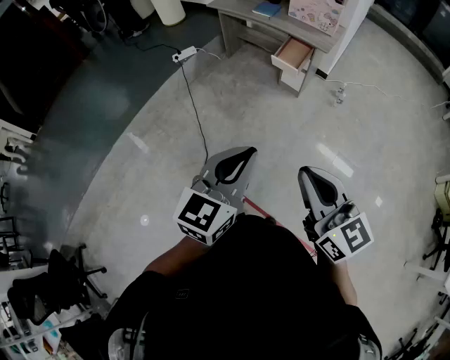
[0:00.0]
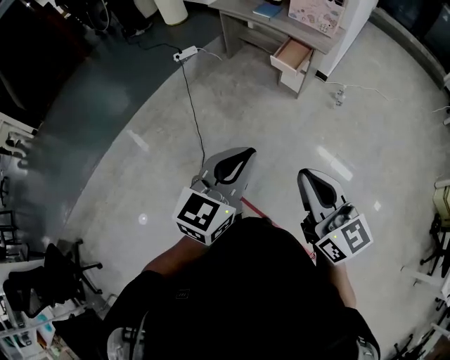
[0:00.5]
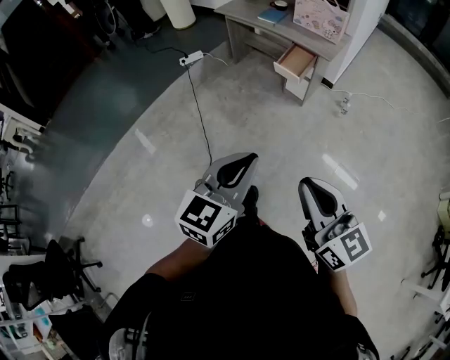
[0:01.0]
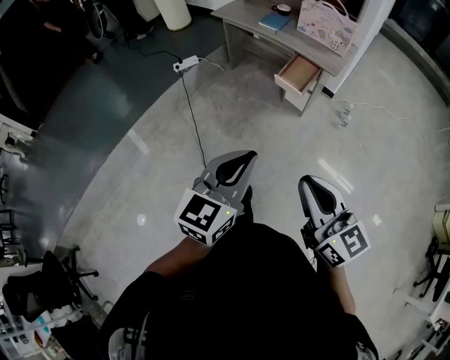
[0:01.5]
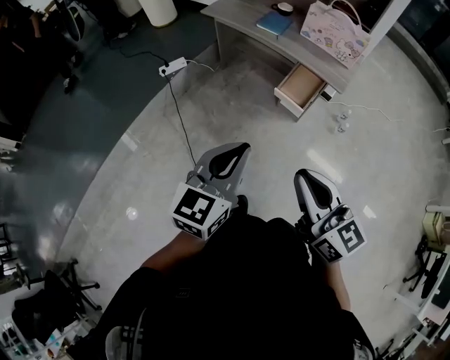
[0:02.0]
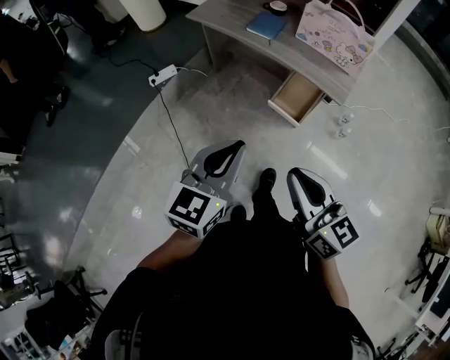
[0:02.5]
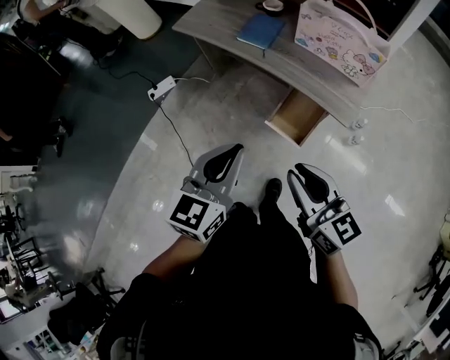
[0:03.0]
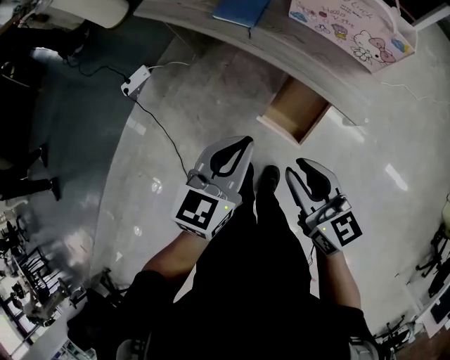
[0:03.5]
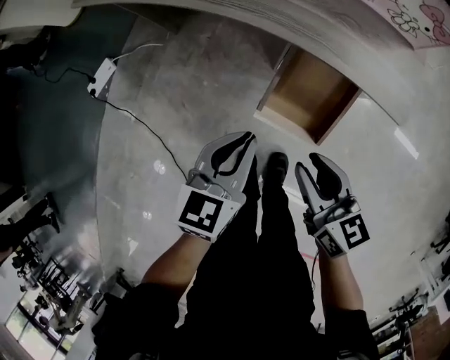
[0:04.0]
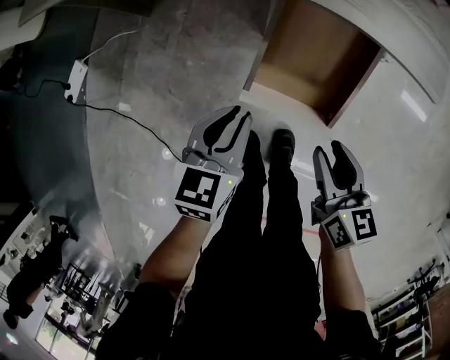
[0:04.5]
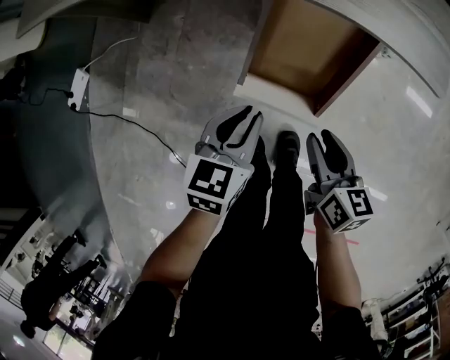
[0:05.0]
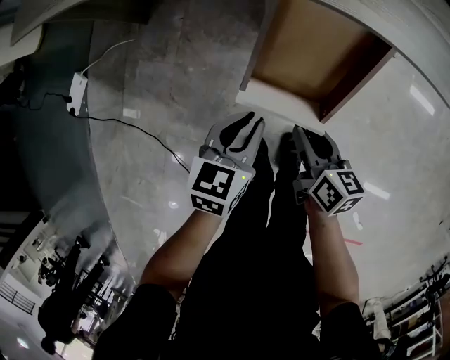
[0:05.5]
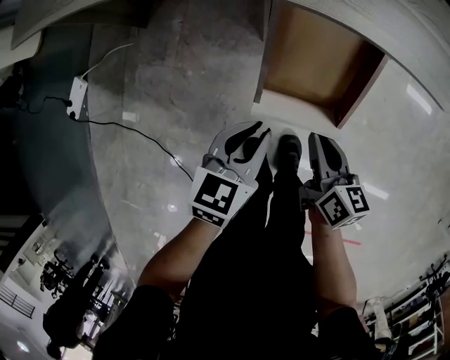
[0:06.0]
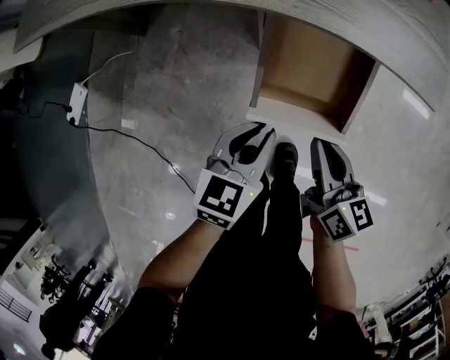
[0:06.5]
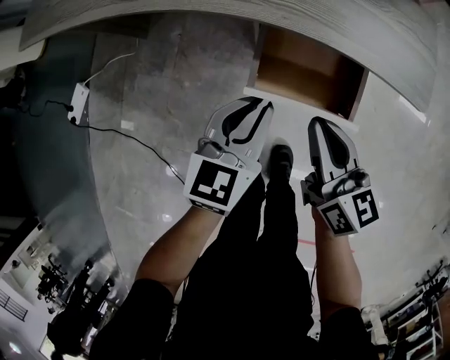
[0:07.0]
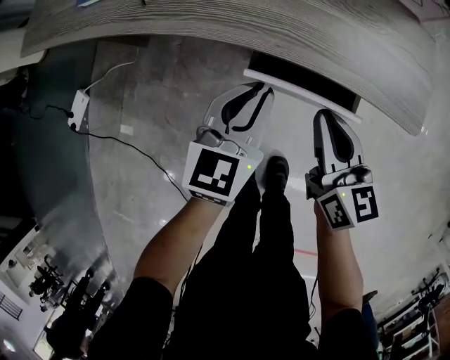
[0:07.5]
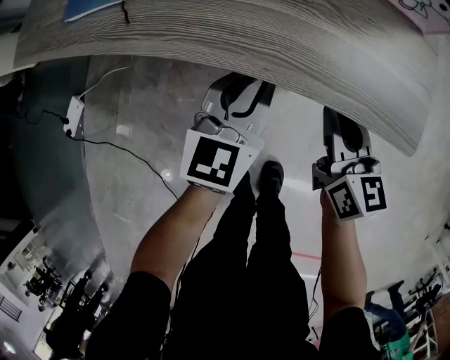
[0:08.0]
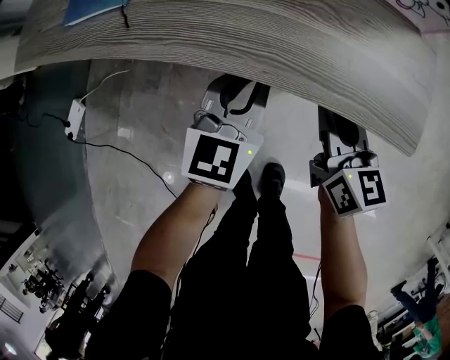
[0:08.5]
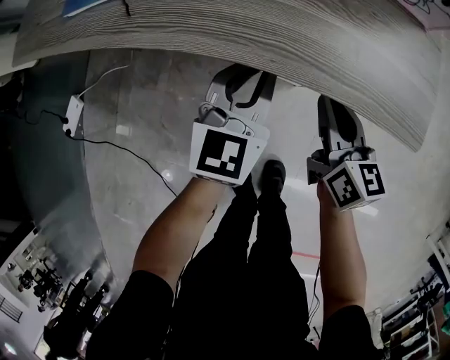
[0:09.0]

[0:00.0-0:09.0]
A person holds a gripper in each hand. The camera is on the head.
0:00.0 to 0:02.0: Both grippers move forward, some 35 cm.
0:02.0 to 0:04.5: Both grippers are carried forward, some 50 cm. The two grippers go roughly 50 cm downward. The right gripper points its fingers some 30 degrees further downward, and opens; the left gripper rotates about 30 degrees.
0:04.5 to 0:07.0: The grippers both shift forward by about 10 cm. The right gripper reaches about 10 cm downward, then returns, and closes. Meanwhile the left gripper moves approximately 5 cm downward and comes back.
0:07.0 to 0:09.0: The grippers both shift forward by roughly 10 cm.

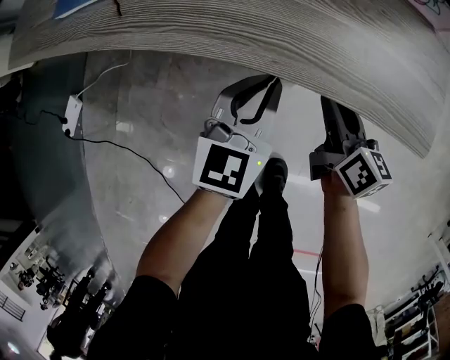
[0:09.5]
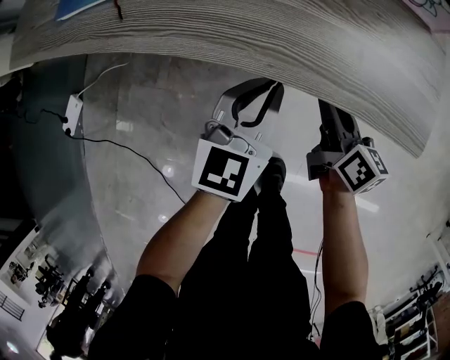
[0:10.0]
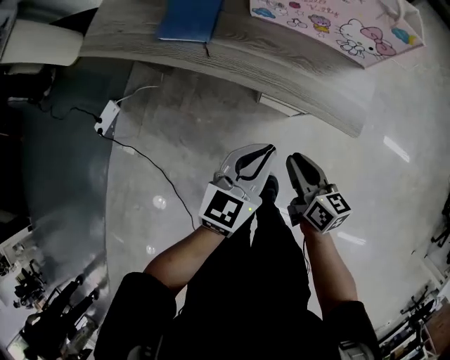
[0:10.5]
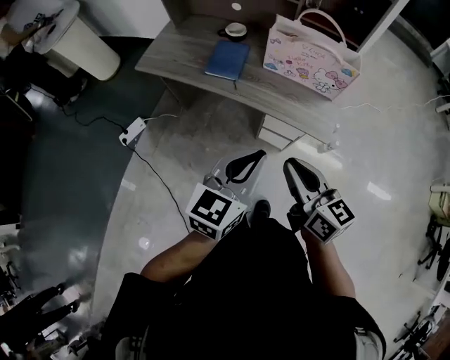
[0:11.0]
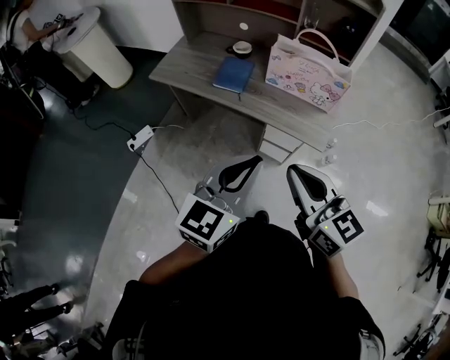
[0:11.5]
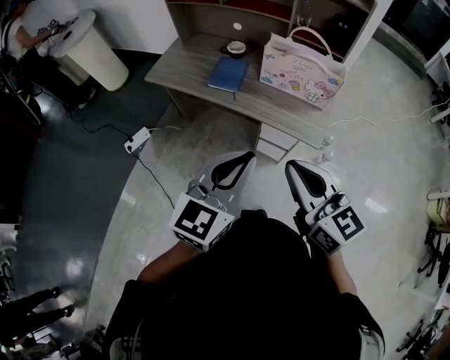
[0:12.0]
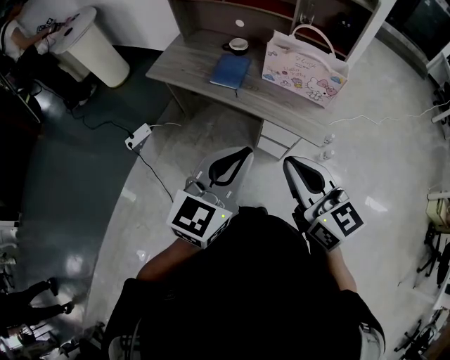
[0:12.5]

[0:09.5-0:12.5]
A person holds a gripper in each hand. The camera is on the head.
0:09.5 to 0:11.0: The grippers both shift upward and backward by approximately 50 cm. The right gripper turns by some 30 degrees, and closes.
0:11.0 to 0:12.5: The two grippers go approximately 10 cm upward and backward.

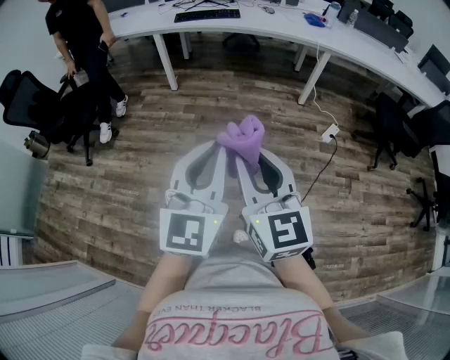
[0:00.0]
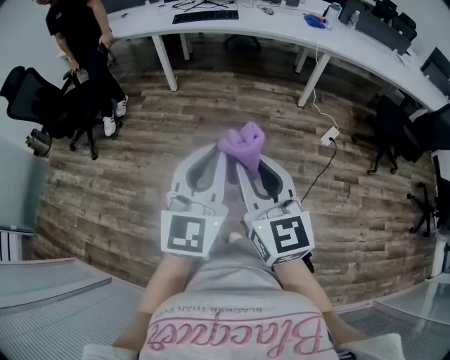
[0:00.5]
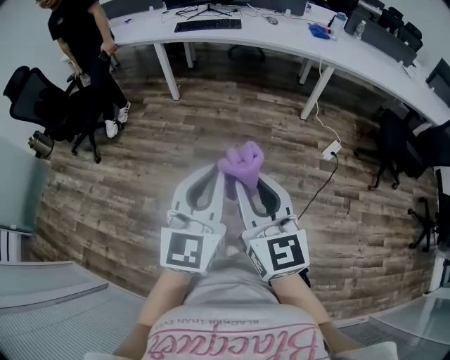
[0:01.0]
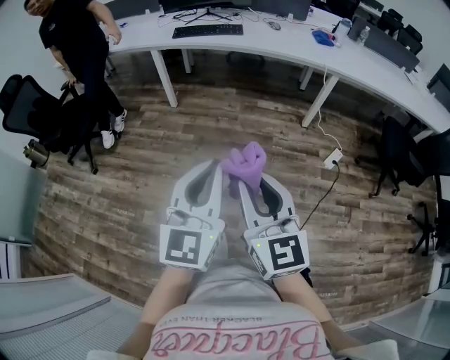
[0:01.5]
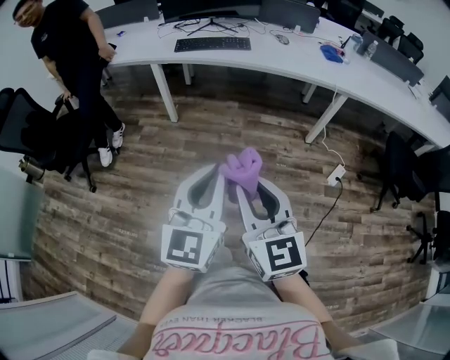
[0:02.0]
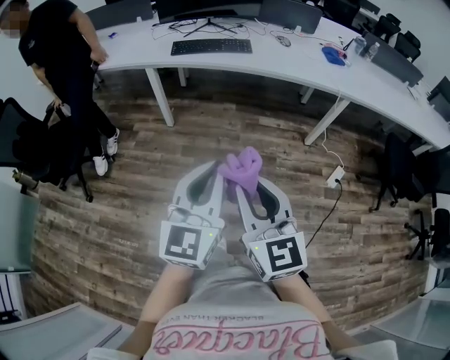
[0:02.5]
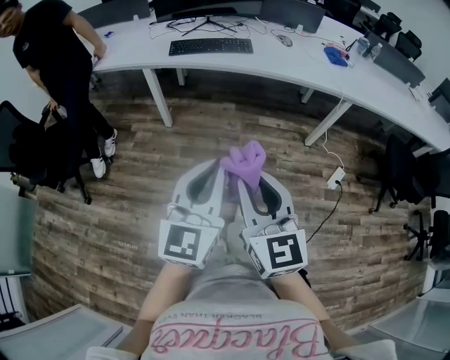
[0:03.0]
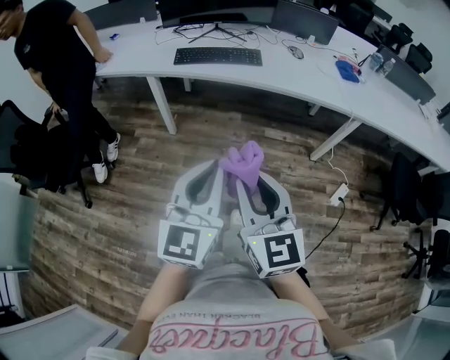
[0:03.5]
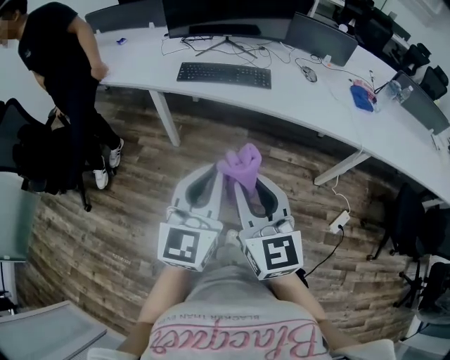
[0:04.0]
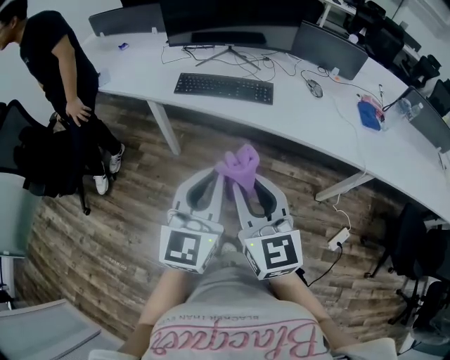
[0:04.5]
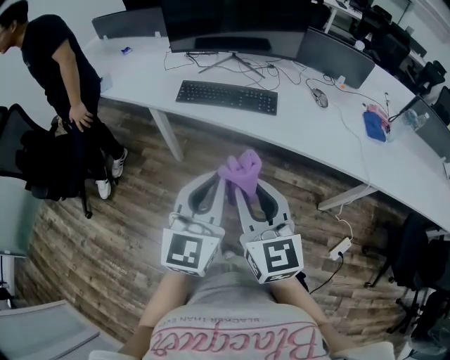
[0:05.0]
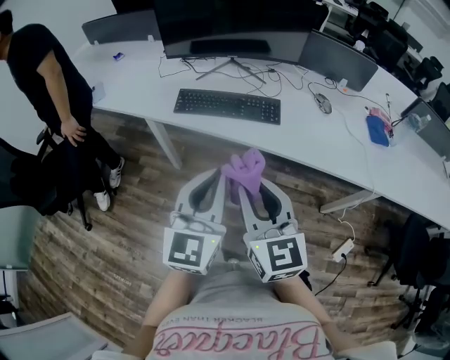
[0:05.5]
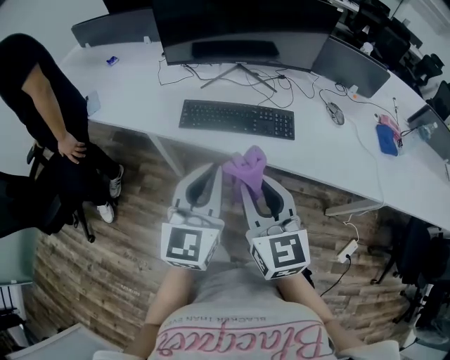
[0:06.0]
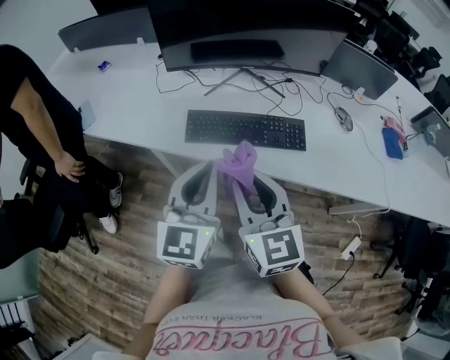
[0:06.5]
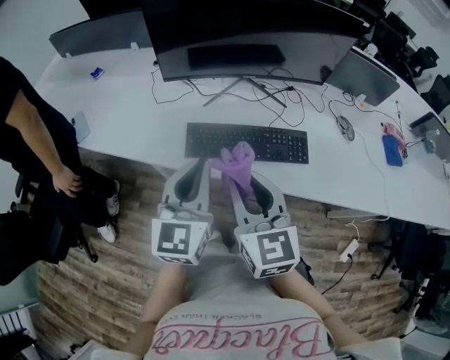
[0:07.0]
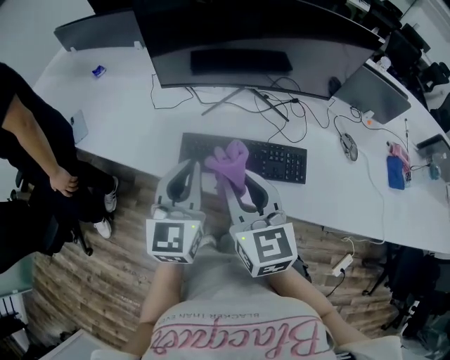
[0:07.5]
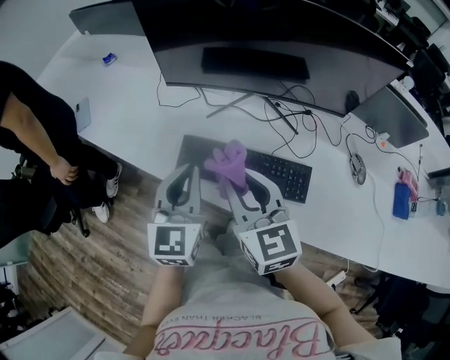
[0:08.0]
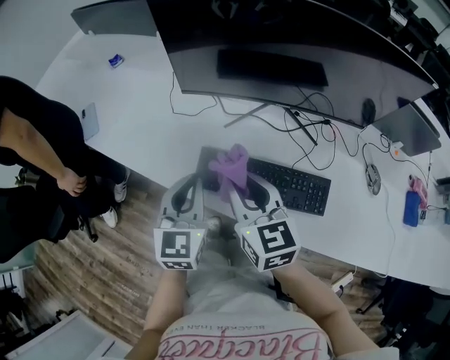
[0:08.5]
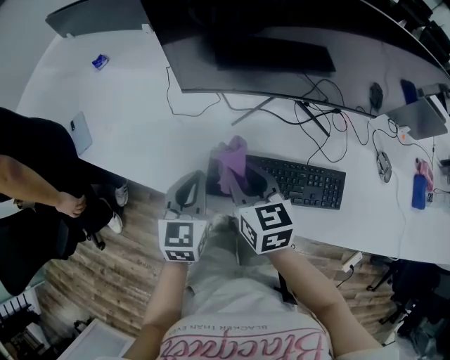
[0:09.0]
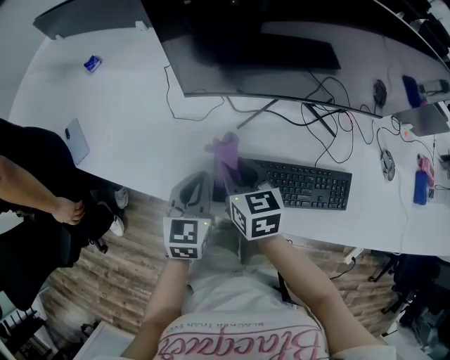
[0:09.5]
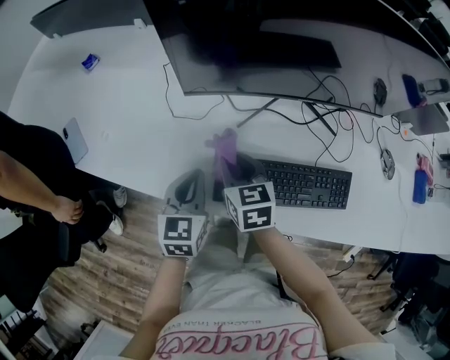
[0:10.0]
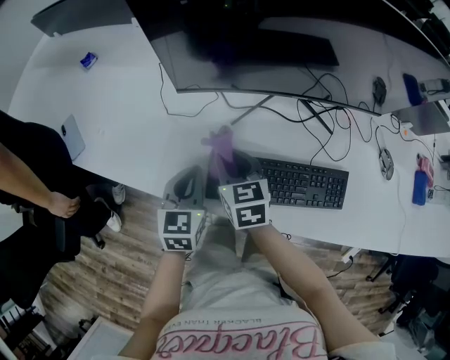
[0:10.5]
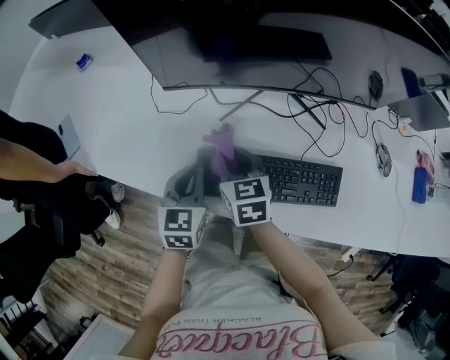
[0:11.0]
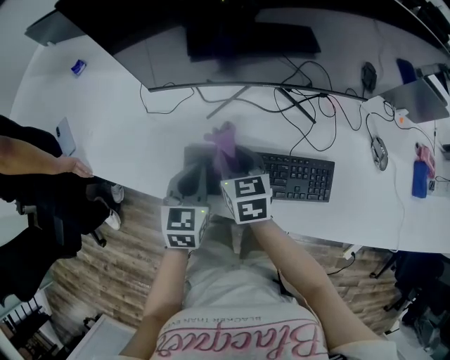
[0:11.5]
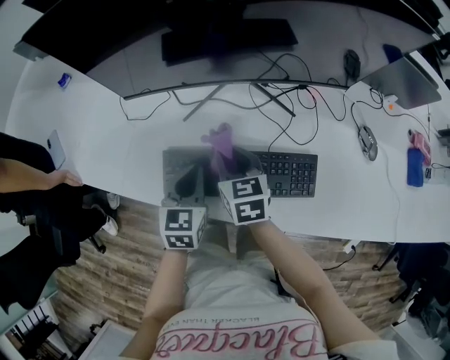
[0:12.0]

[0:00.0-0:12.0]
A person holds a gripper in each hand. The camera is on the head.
0:00.0 to 0:02.0: The two grippers go about 30 cm forward.
0:02.0 to 0:04.0: Both grippers move forward, some 35 cm.
0:04.0 to 0:06.0: The two grippers go about 30 cm forward.
0:06.0 to 0:08.0: Both grippers travel together forward, approximately 25 cm.
0:08.0 to 0:10.0: The grippers both shift downward, forward and to the left by some 25 cm. The left gripper rotates approximately 20 degrees; the right gripper rotates some 30 degrees.
0:10.0 to 0:12.0: Both grippers move to the right, roughly 15 cm.

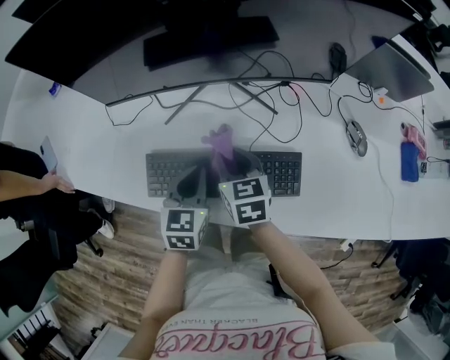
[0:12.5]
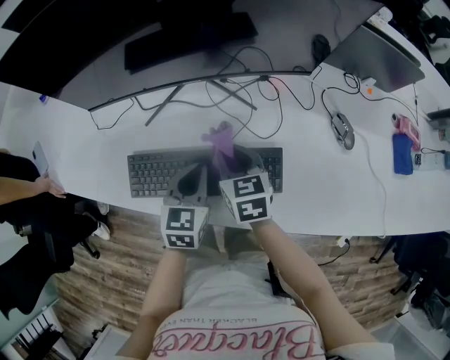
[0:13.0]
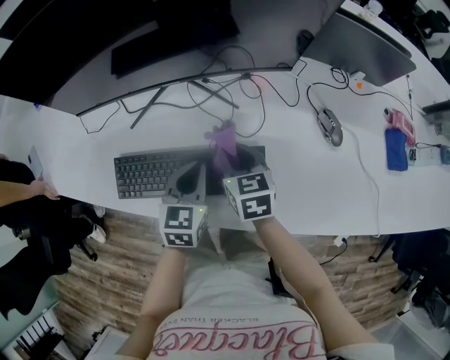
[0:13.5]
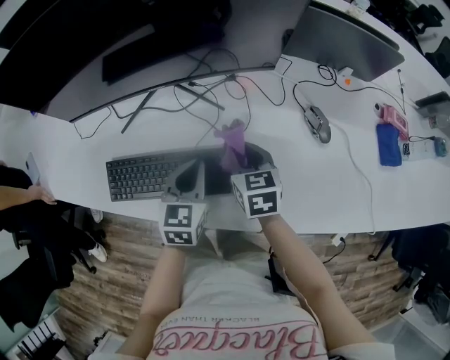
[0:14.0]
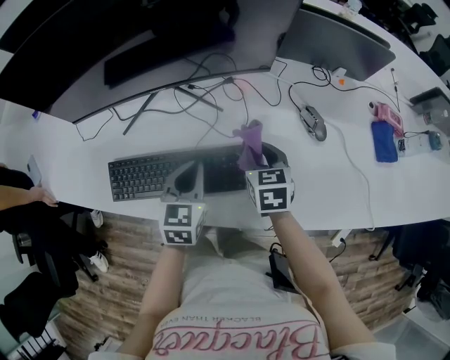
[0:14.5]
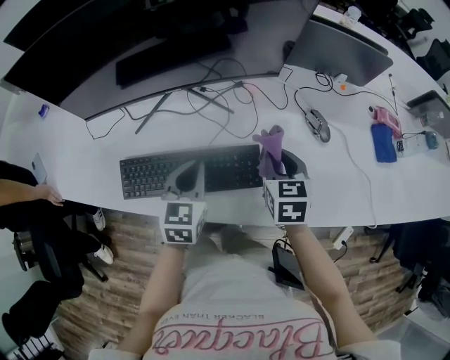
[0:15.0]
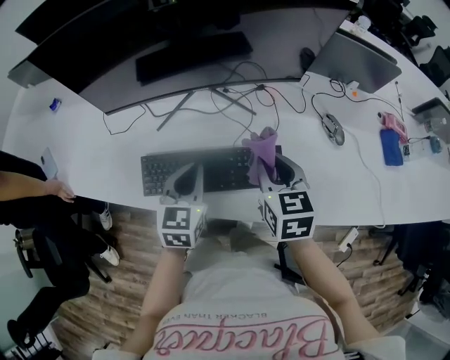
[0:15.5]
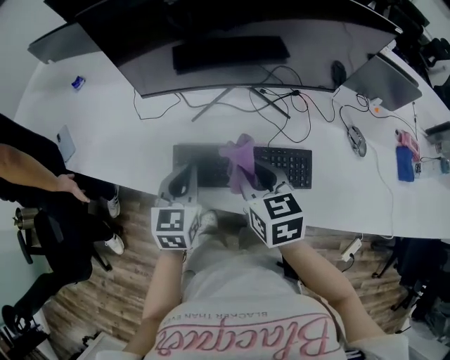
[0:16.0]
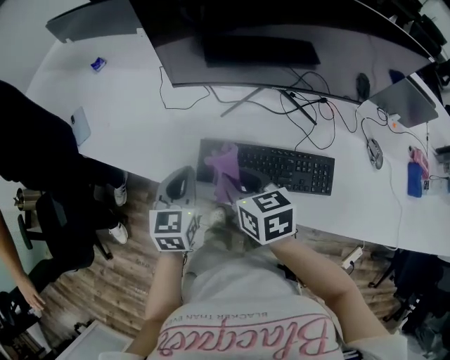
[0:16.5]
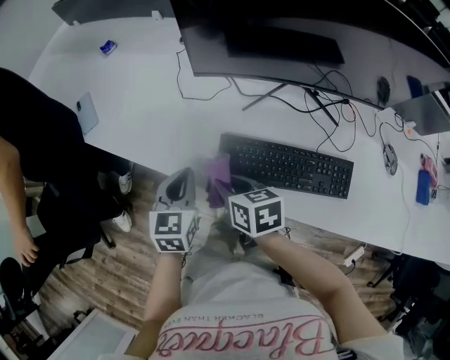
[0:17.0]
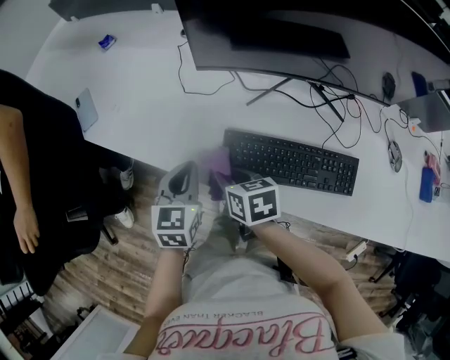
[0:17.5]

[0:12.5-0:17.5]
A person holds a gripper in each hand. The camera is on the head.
0:12.5 to 0:15.0: The right gripper is displaced to the right by roughly 25 cm, and rotates about 20 degrees; the left gripper shifts approximately 10 cm to the right.
0:15.0 to 0:17.5: The right gripper moves approximately 50 cm, and turns by some 40 degrees. The left gripper changes place by approximately 35 cm.
